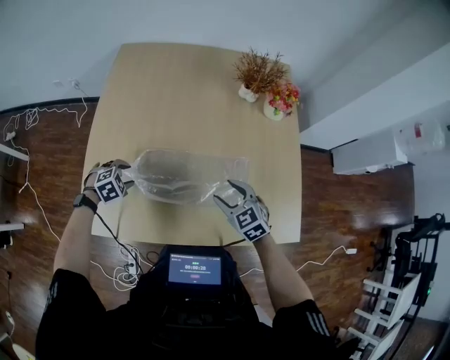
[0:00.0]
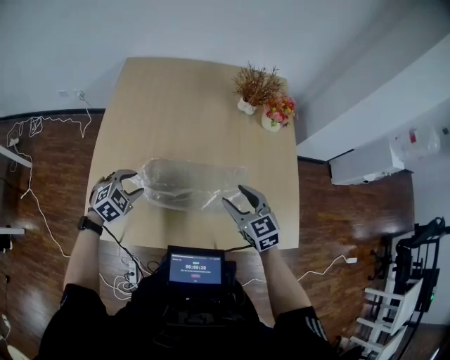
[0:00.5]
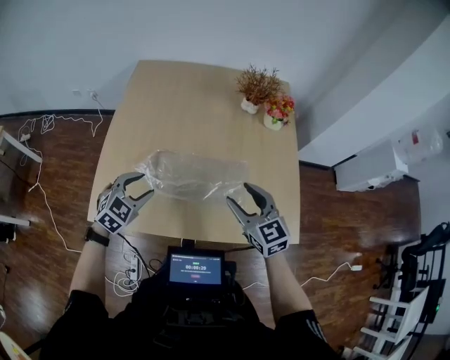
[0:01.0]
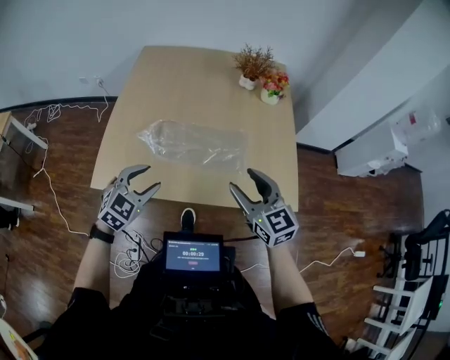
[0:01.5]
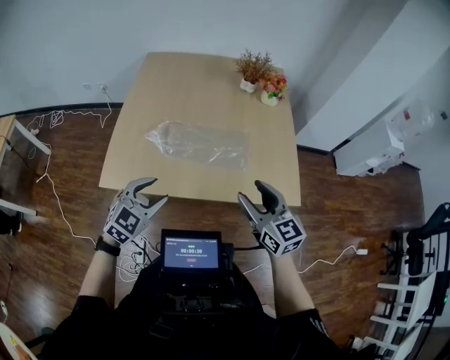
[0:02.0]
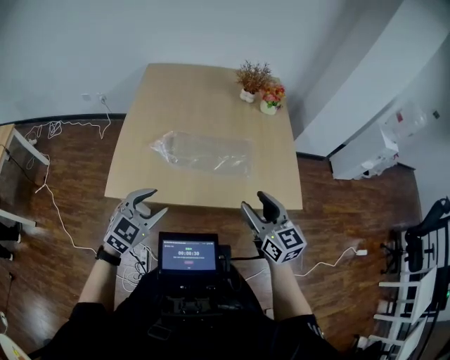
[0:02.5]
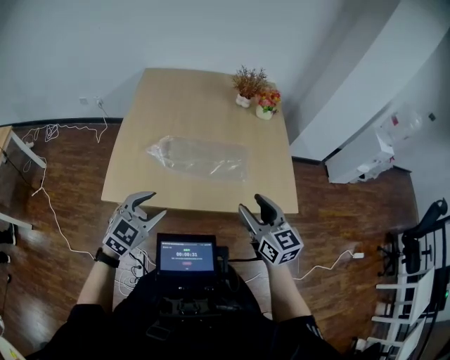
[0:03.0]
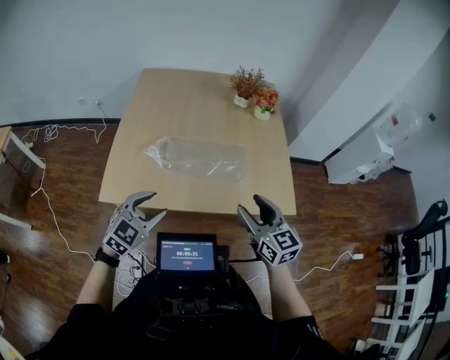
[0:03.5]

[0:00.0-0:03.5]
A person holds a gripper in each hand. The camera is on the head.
0:00.0 to 0:02.0: The right gripper shifts about 30 cm backward and upward, and rotates approximately 30 degrees. The left gripper travels backward, upward and to the right by approximately 40 cm, and tilts its fingers some 40 degrees upward.
0:02.0 to 0:03.5: The grippers move only a little.

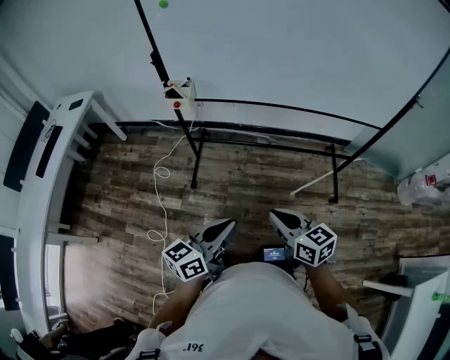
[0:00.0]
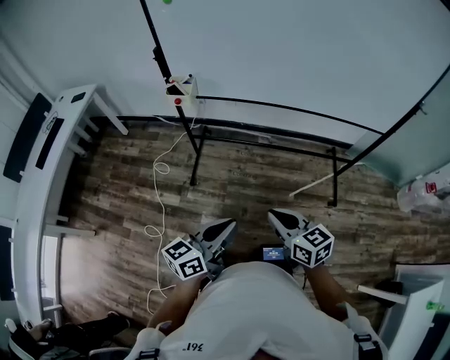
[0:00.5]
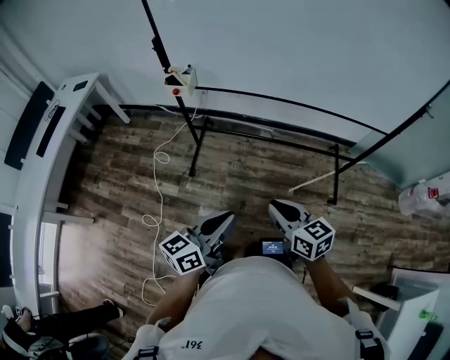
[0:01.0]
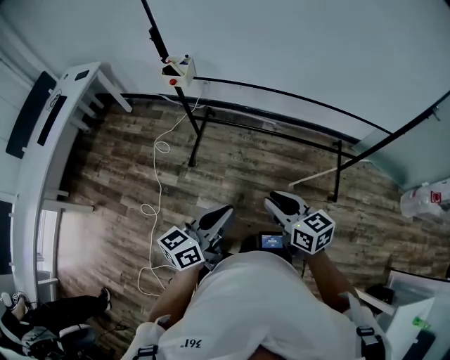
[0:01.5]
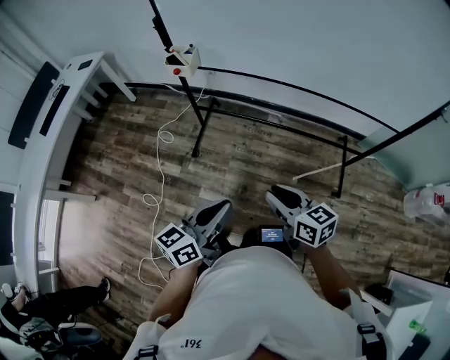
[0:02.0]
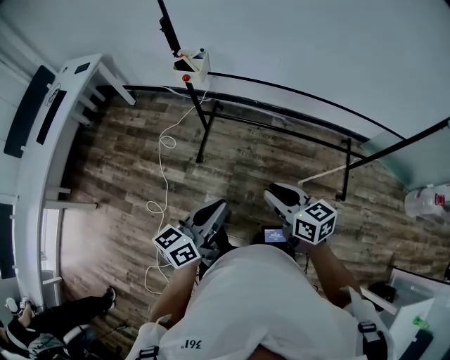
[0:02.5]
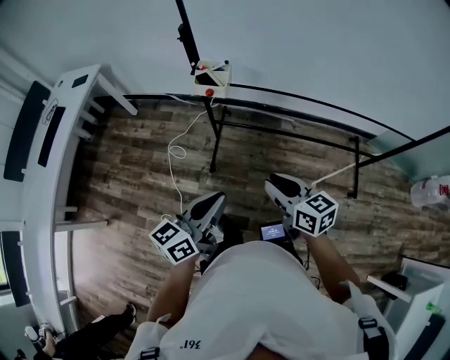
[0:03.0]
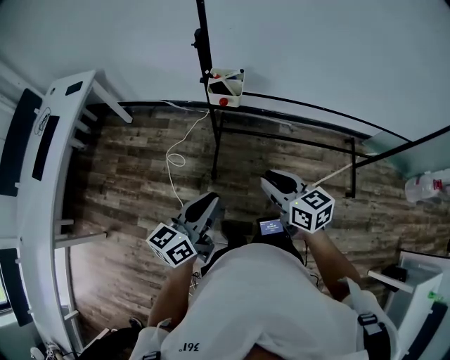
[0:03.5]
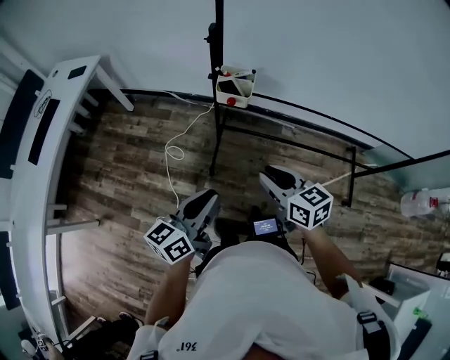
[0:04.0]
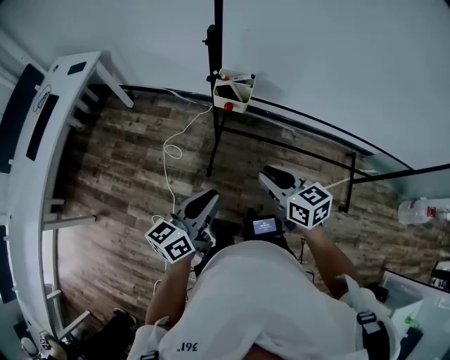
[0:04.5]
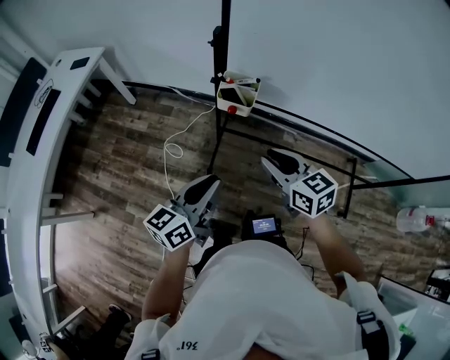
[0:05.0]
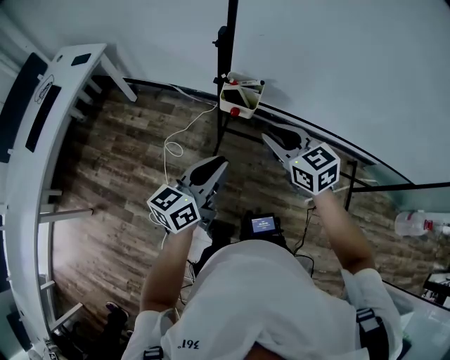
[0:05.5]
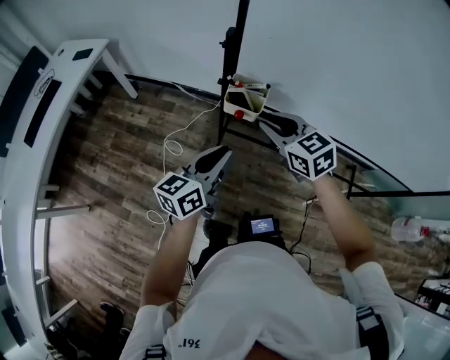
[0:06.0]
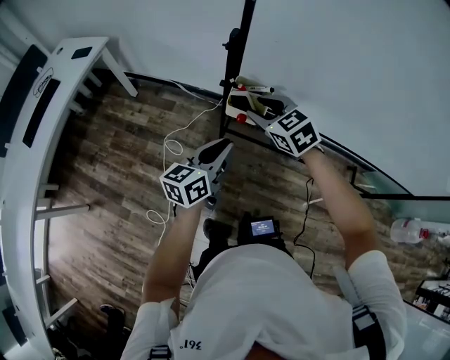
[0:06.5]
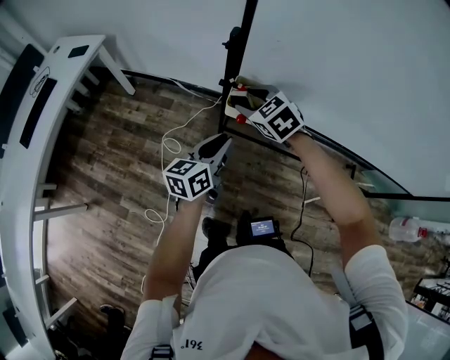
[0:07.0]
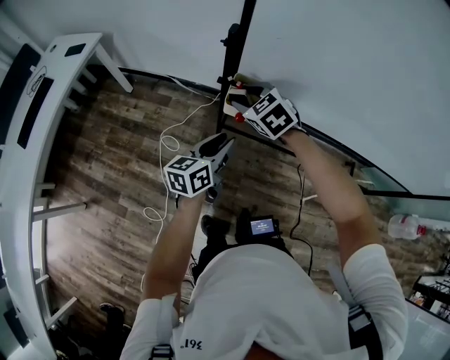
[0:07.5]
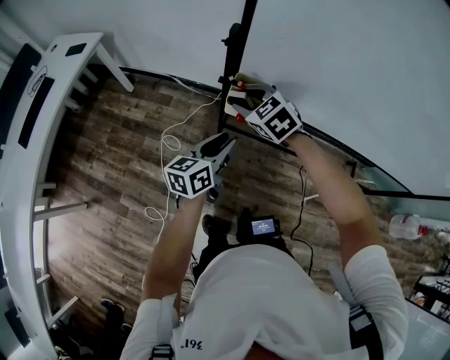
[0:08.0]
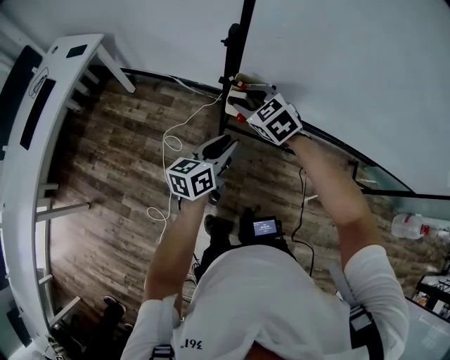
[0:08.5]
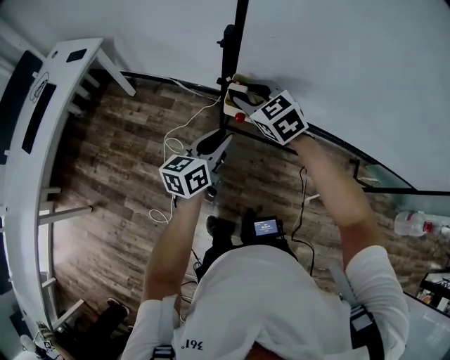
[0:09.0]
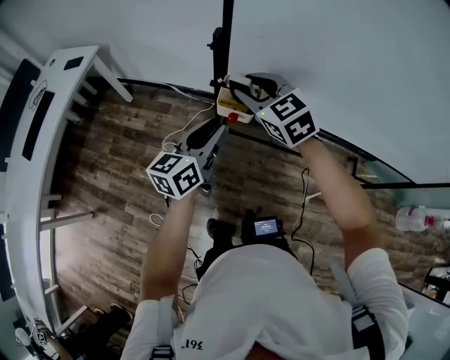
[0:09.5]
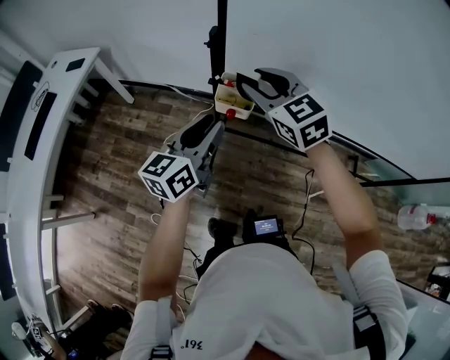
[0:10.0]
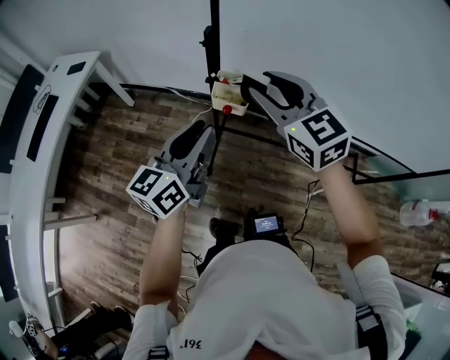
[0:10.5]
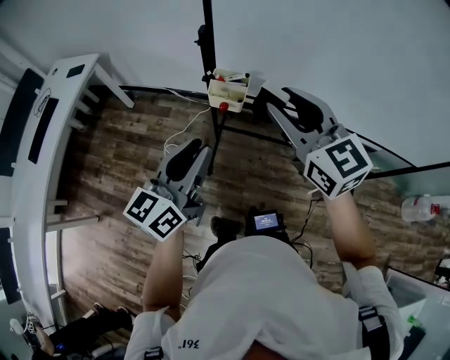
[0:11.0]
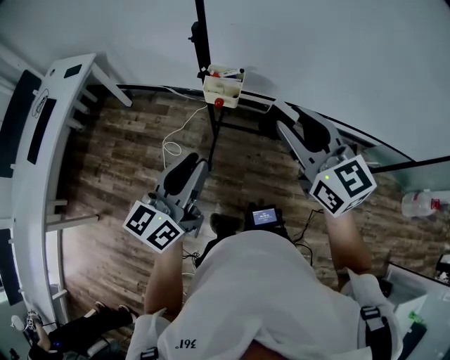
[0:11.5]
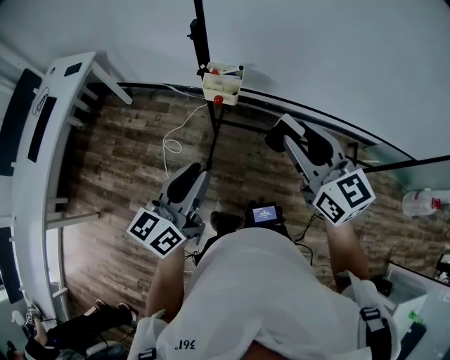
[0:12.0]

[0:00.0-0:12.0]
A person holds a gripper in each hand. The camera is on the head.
0:00.0 to 0:02.0: Both grippers travel together to the right, approximately 5 cm.
0:02.0 to 0:04.0: Both grippers move to the left and forward, roughly 35 cm.
0:04.0 to 0:06.0: Both grippers move forward, roughly 20 cm. The right gripper swivels roughly 20 degrees.
0:06.0 to 0:08.0: The right gripper is displaced forward, to the left and downward by roughly 15 cm, rotates approximately 20 degrees, and opens up; the left gripper moves forward and downward, about 10 cm, and opens.
0:08.0 to 0:10.0: Both grippers travel together upward, some 15 cm. The right gripper turns by roughly 20 degrees.
0:10.0 to 0:12.0: The right gripper shifts about 20 cm backward and to the right, and rotates about 20 degrees; the left gripper shifts approximately 15 cm backward.

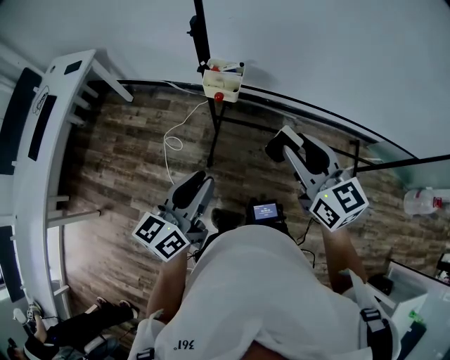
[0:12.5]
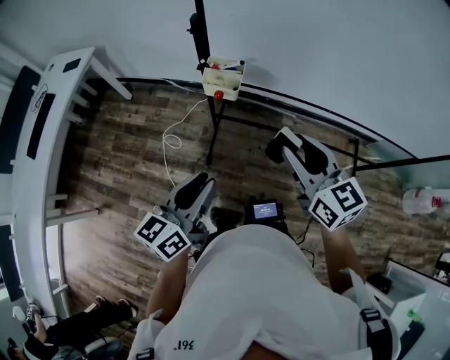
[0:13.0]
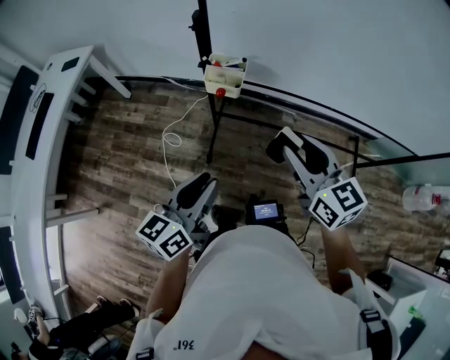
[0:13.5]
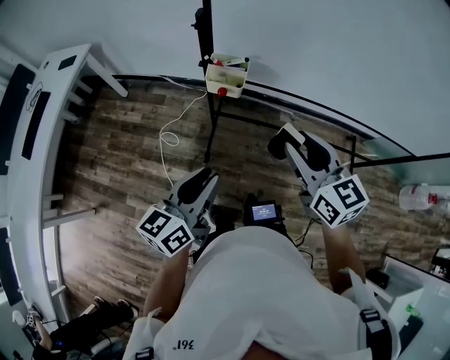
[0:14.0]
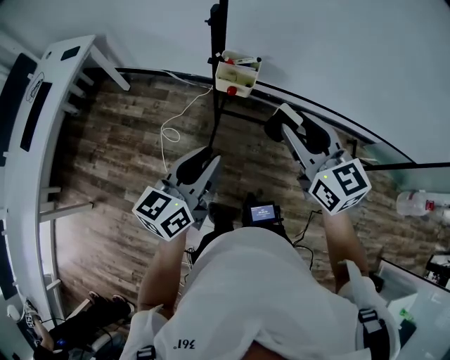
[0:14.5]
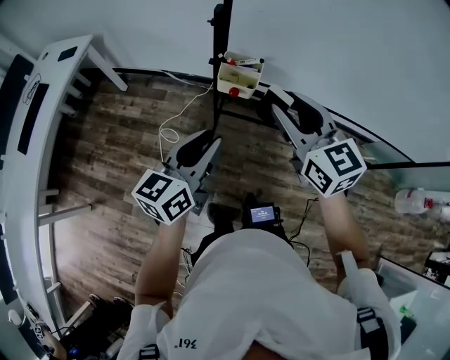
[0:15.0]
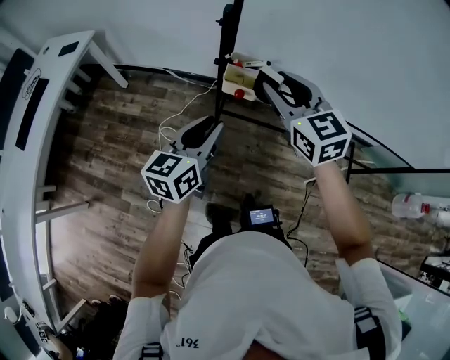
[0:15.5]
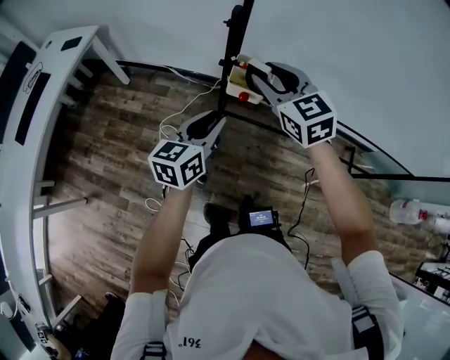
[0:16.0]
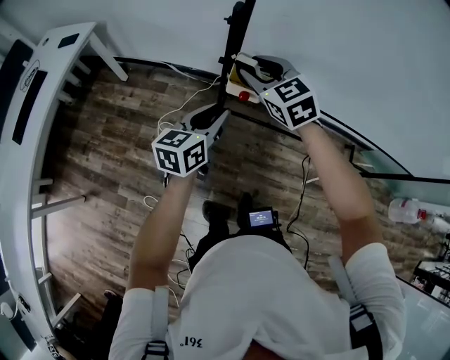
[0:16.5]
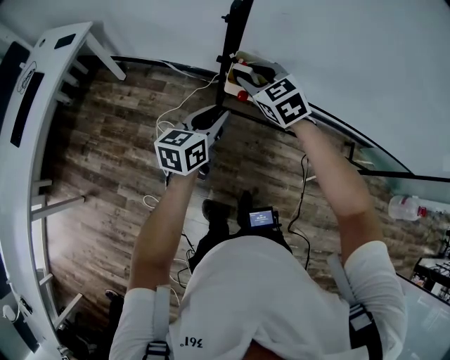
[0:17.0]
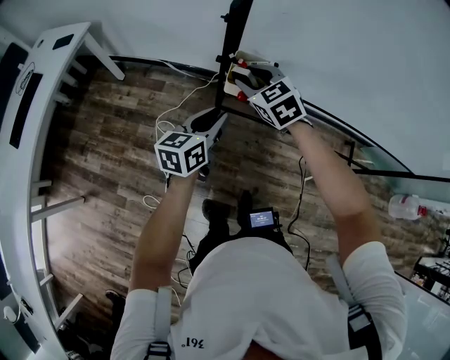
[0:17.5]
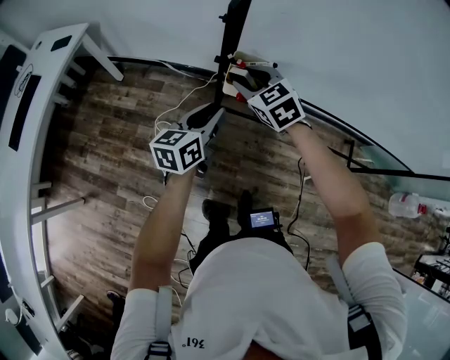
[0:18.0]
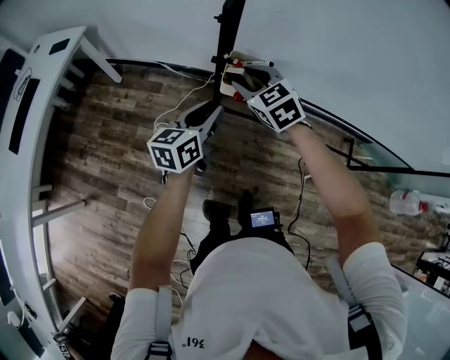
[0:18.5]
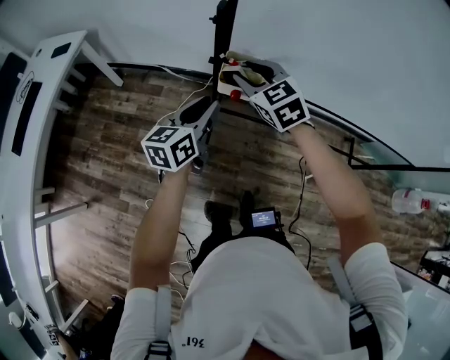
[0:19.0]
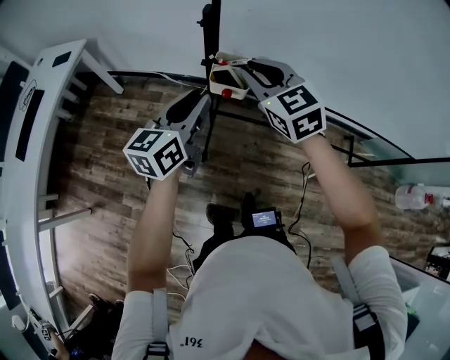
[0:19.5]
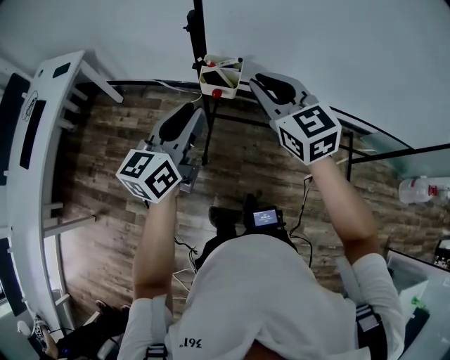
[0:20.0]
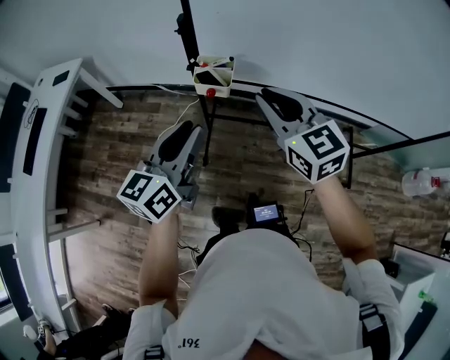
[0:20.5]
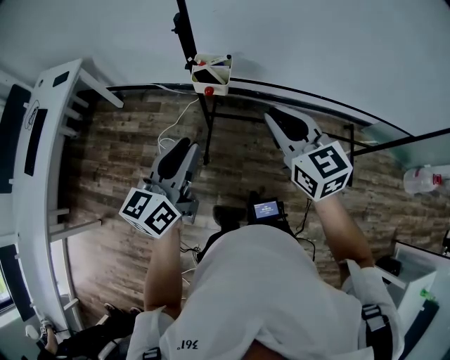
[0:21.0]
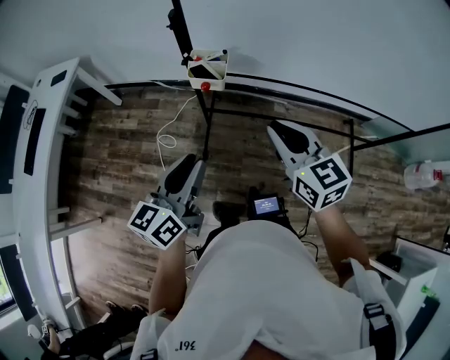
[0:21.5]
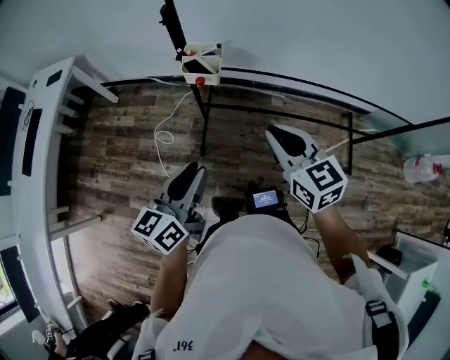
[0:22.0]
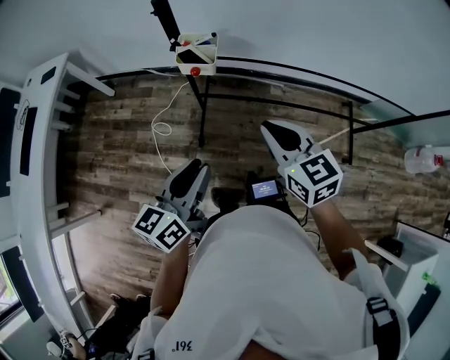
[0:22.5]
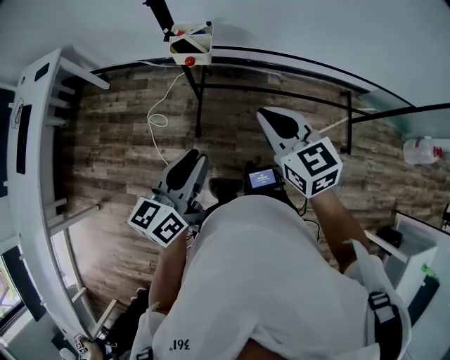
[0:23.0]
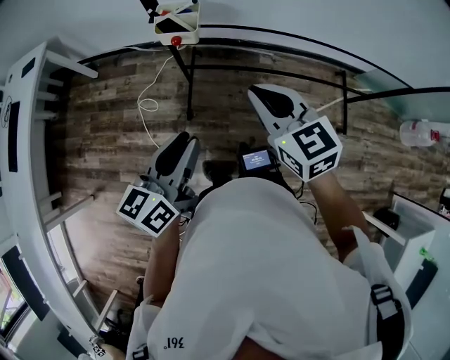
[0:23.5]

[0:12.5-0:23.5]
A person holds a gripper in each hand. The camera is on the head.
0:12.5 to 0:14.5: The left gripper changes place by approximately 5 cm. The right gripper heads to the left, covering some 5 cm.
0:14.5 to 0:16.0: The left gripper travels forward and downward by about 15 cm; the right gripper travels forward and to the left by approximately 20 cm.
0:16.0 to 0:18.0: The left gripper is displaced downward by about 5 cm. Meanwhile the right gripper heads downward, covering roughly 10 cm.
0:18.0 to 0:20.0: The left gripper heads upward and backward, covering some 15 cm, while the right gripper goes about 20 cm upward, backward and to the right, turns by approximately 20 degrees, and closes up.
0:20.0 to 0:21.5: The right gripper heads backward and to the right, covering roughly 15 cm, while the left gripper travels backward by roughly 15 cm.
0:21.5 to 0:23.5: The left gripper shifts by some 5 cm.
